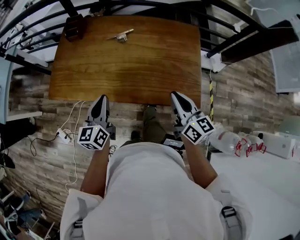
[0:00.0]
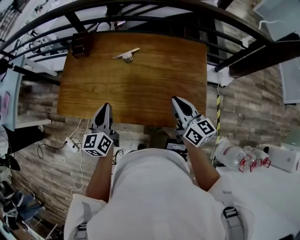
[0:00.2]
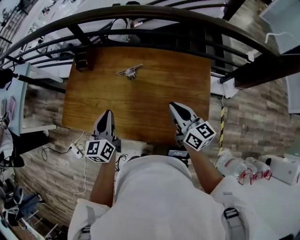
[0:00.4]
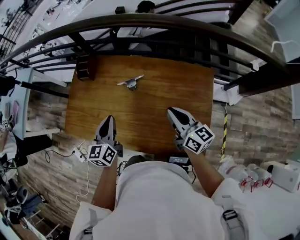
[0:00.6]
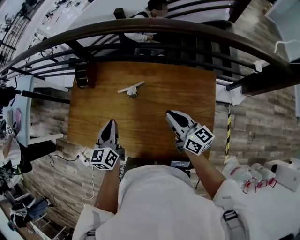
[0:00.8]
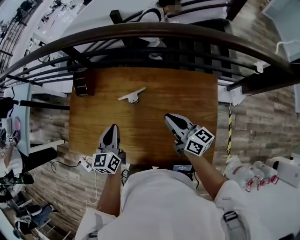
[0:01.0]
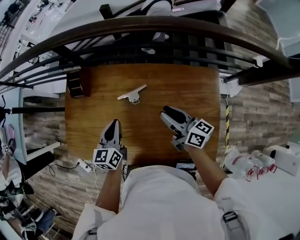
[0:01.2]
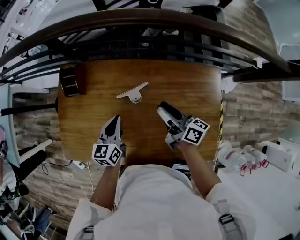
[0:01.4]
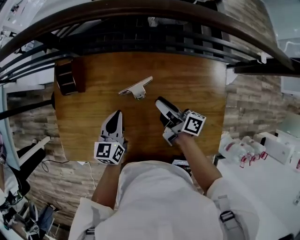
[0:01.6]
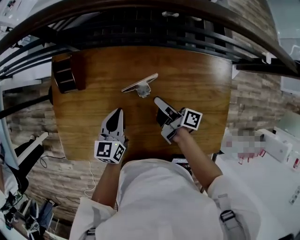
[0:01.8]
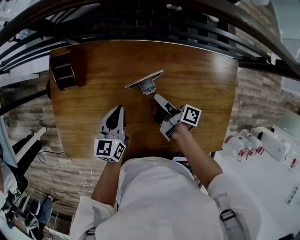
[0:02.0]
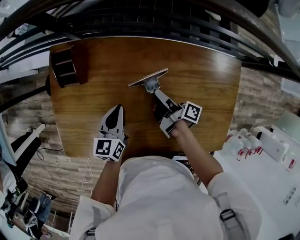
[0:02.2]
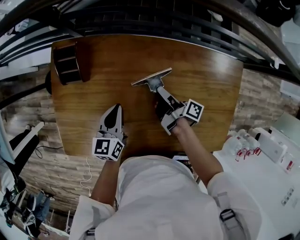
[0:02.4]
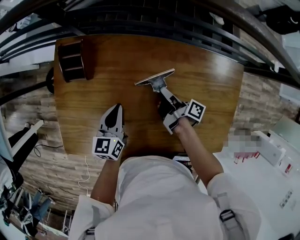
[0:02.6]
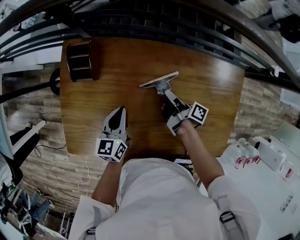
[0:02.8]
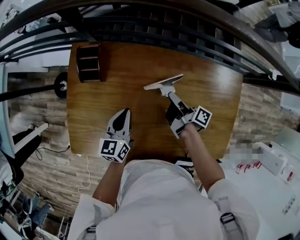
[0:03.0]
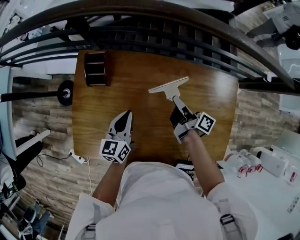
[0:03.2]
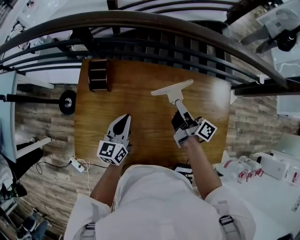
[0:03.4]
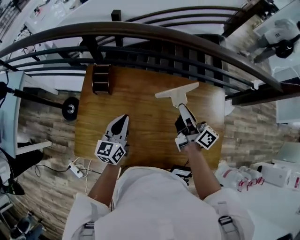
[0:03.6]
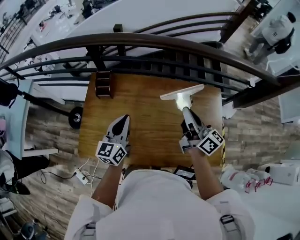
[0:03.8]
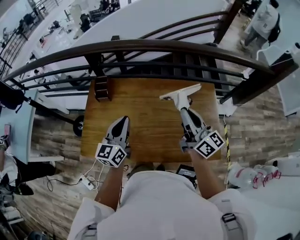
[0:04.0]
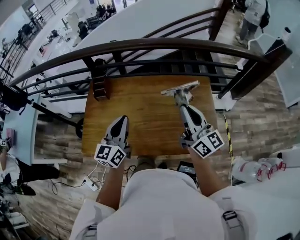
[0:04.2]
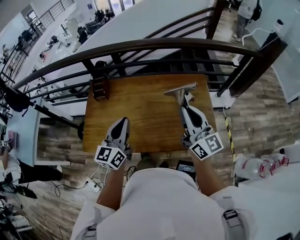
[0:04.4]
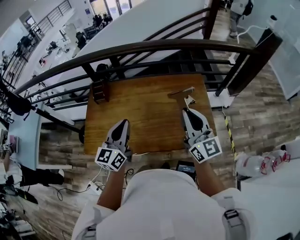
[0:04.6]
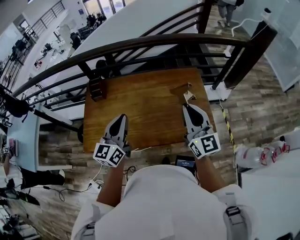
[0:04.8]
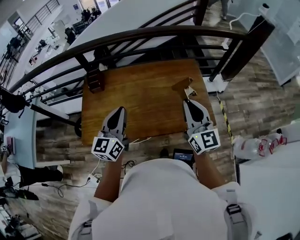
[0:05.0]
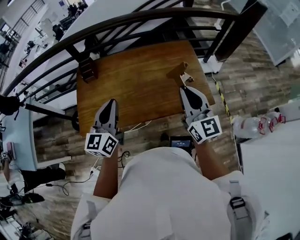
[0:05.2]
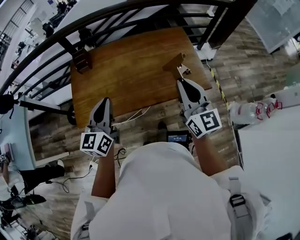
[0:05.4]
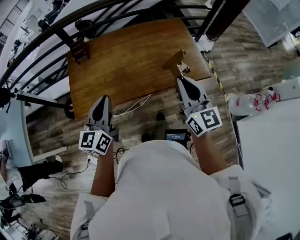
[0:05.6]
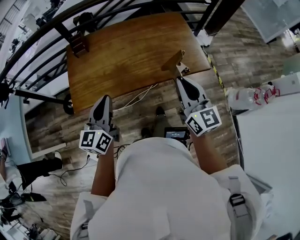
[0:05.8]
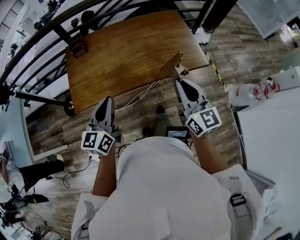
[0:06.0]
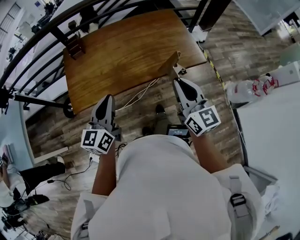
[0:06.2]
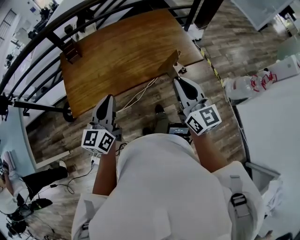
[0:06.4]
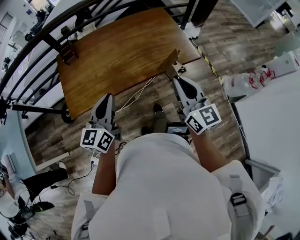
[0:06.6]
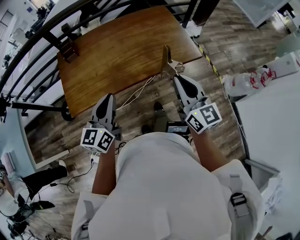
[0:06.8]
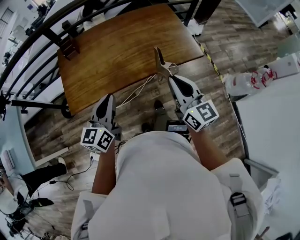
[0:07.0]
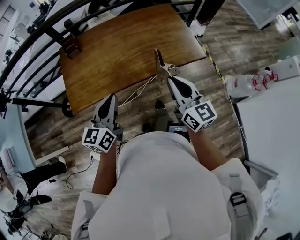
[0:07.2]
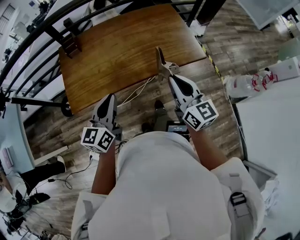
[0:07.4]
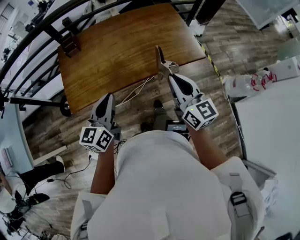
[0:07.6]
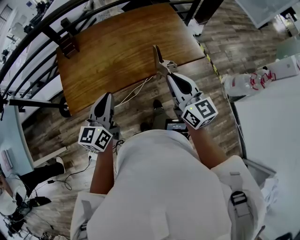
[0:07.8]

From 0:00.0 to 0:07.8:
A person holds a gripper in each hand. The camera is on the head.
From 0:00.0 to 0:01.6: The two grippers go roughly 35 cm forward. The right gripper rotates some 40 degrees, and opens.
From 0:01.6 to 0:03.2: The right gripper reaches roughly 15 cm downward, then returns, and closes; the left gripper moves to the left, approximately 10 cm.
From 0:03.2 to 0:04.6: The right gripper moves backward, upward and to the right, roughly 50 cm, and rolls counterclockwise, seen from behind, by roughly 70 degrees; the left gripper travels upward, backward and to the right by approximately 40 cm, and rotates about 30 degrees.
From 0:04.6 to 0:06.2: The two grippers go some 25 cm backward.
From 0:06.2 to 0:07.8: The grippers make only small movements.

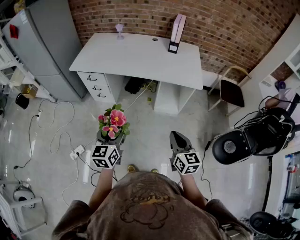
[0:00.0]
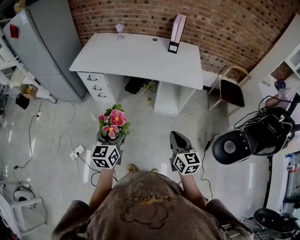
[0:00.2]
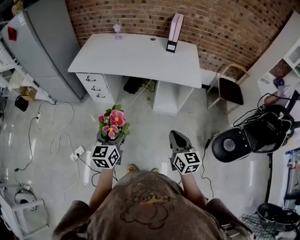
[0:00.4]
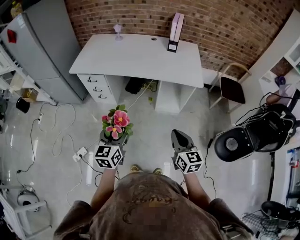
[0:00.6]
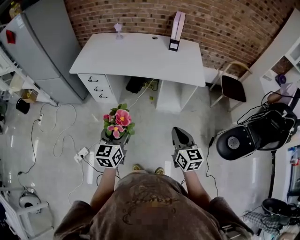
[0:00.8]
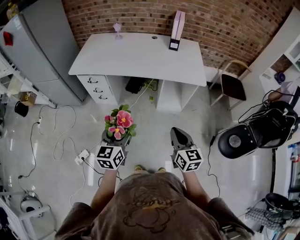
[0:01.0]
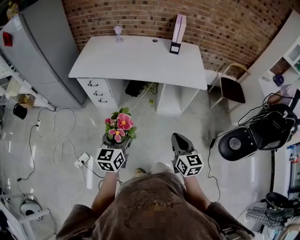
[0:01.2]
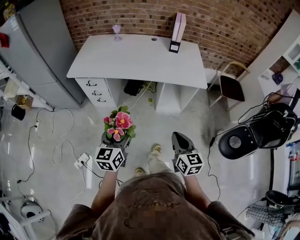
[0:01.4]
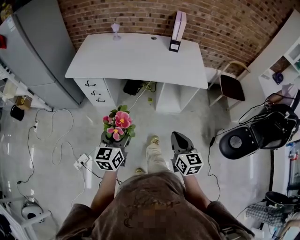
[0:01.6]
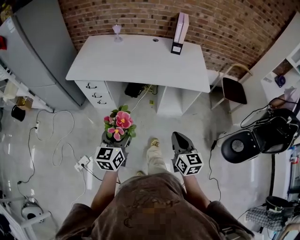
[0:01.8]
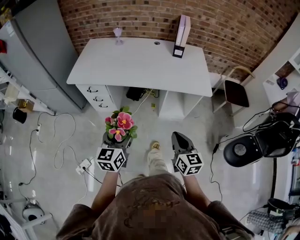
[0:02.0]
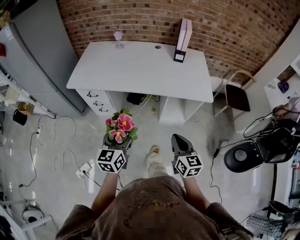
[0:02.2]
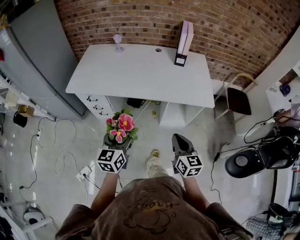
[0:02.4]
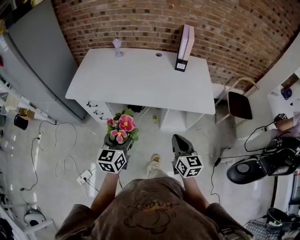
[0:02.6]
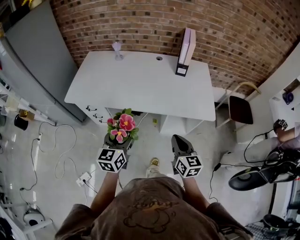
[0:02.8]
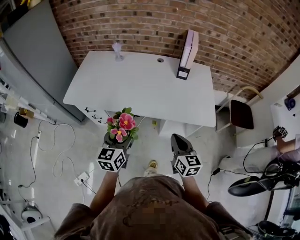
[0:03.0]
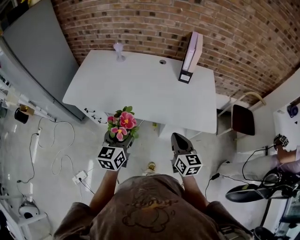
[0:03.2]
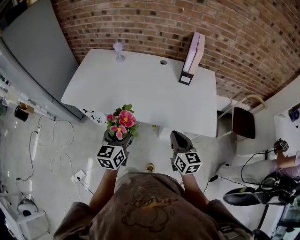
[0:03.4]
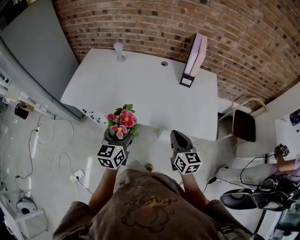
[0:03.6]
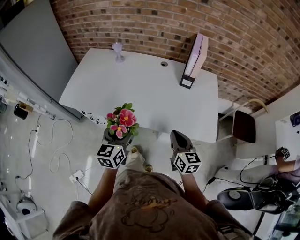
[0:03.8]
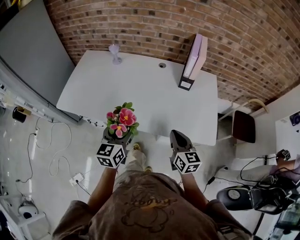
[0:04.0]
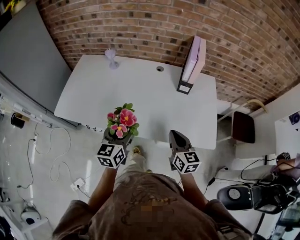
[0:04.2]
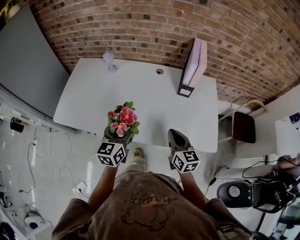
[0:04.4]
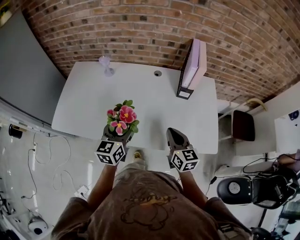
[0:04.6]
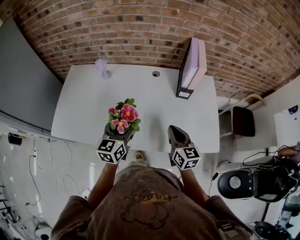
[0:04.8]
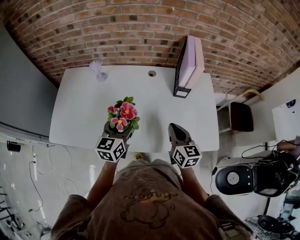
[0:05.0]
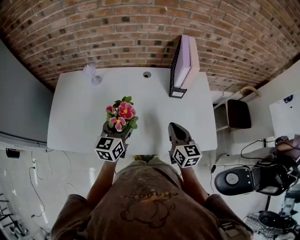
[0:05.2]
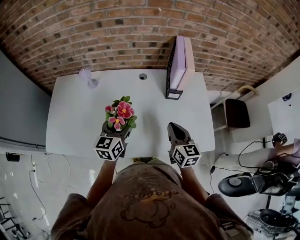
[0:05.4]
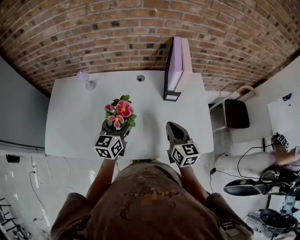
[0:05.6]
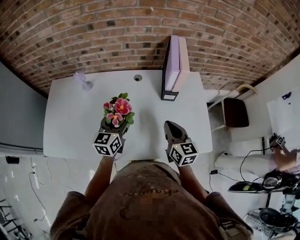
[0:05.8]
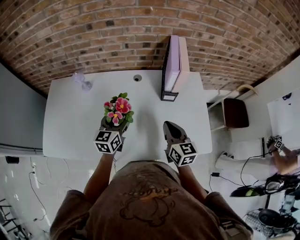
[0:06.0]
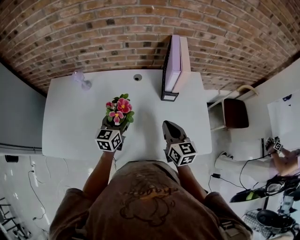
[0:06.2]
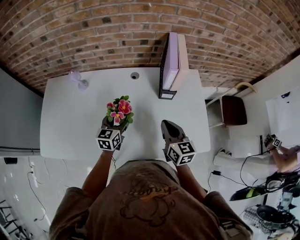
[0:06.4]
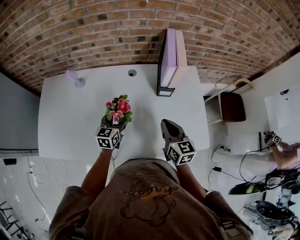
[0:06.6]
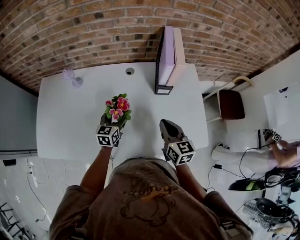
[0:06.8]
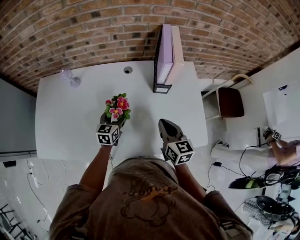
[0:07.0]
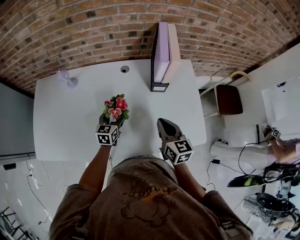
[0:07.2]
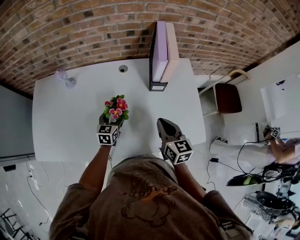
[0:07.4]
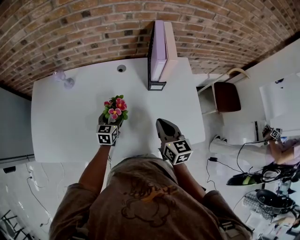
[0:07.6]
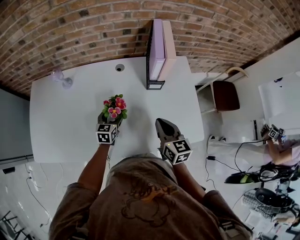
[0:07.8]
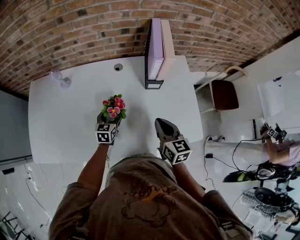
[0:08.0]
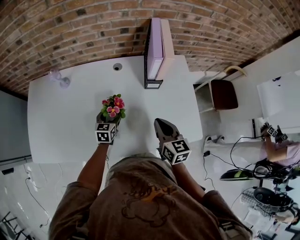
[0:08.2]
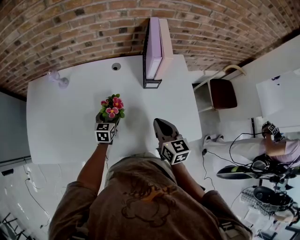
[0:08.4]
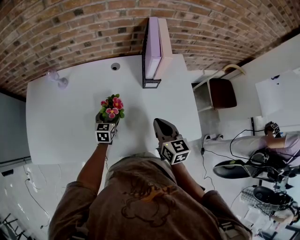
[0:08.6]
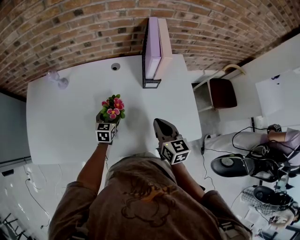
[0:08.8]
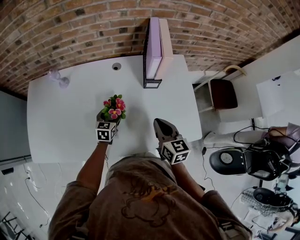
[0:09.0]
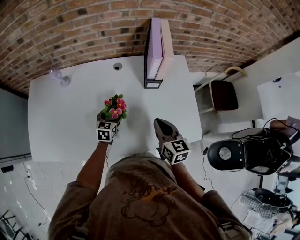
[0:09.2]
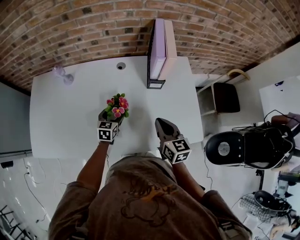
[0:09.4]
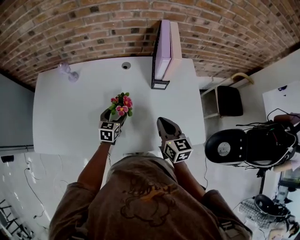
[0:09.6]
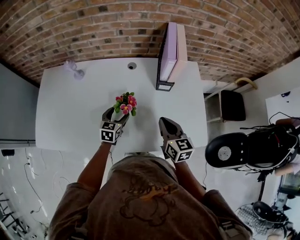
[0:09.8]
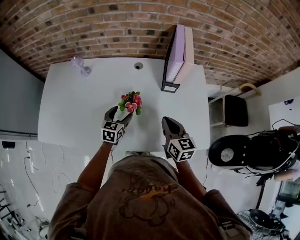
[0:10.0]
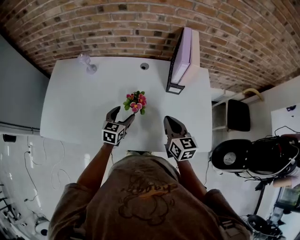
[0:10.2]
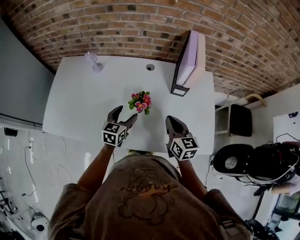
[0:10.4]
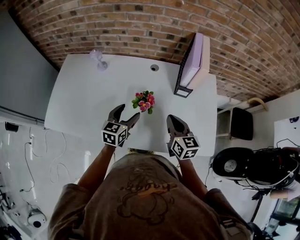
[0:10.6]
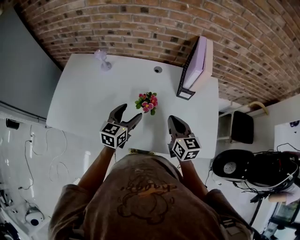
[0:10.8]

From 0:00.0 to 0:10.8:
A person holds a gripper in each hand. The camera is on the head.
From 0:00.0 to 0:01.6: The left gripper heads forward and to the left, covering approximately 10 cm, while the right gripper shifts roughly 10 cm to the left.
From 0:01.6 to 0:03.0: Both grippers move forward, about 25 cm.
From 0:03.0 to 0:04.6: The grippers both shift forward by about 25 cm.
From 0:04.6 to 0:06.2: The right gripper is displaced forward by about 10 cm, while the left gripper goes approximately 20 cm forward and downward.
From 0:06.2 to 0:07.8: The left gripper shifts some 15 cm downward.
From 0:07.8 to 0:09.2: The grippers stay close to where they were, moving slightly.
From 0:09.2 to 0:10.8: The left gripper moves upward and backward, about 20 cm; the right gripper heads to the left, covering some 5 cm.

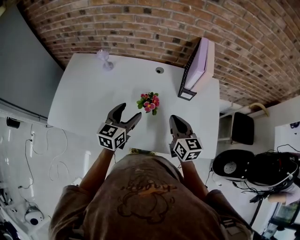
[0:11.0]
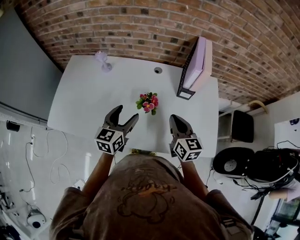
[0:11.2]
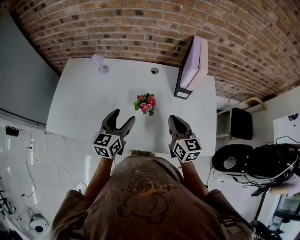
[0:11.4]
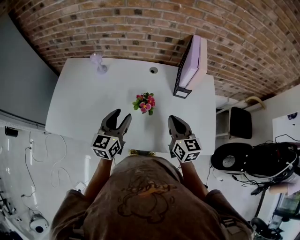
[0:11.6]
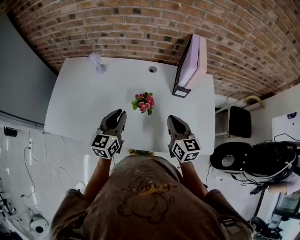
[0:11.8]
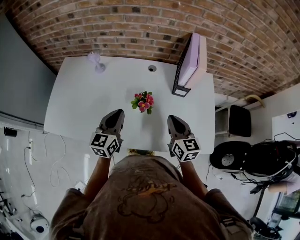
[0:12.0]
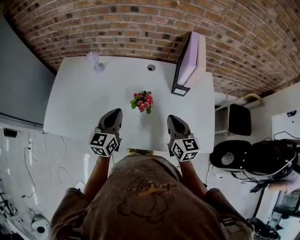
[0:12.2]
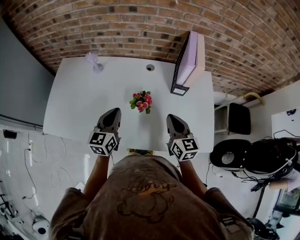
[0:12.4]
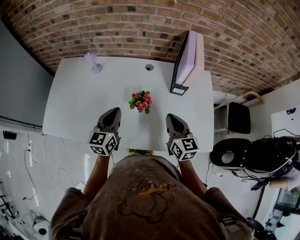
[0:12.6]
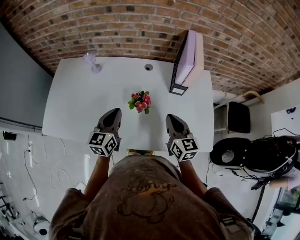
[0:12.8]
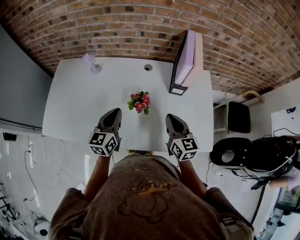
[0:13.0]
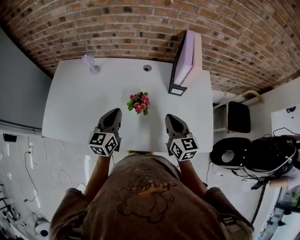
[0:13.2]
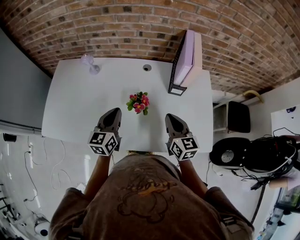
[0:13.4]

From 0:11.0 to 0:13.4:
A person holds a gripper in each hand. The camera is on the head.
From 0:11.0 to 0:12.2: The left gripper closes up.
From 0:12.2 to 0:13.4: The grippers make only small movements.

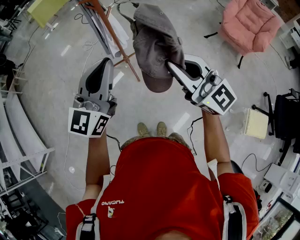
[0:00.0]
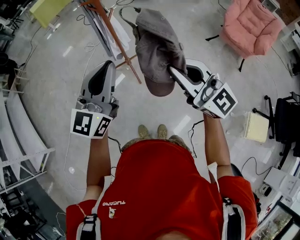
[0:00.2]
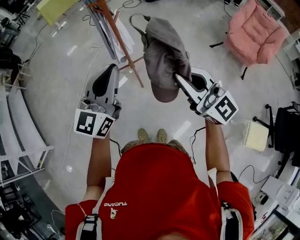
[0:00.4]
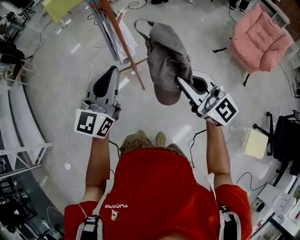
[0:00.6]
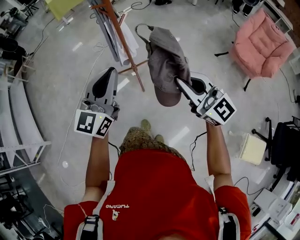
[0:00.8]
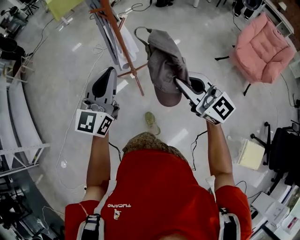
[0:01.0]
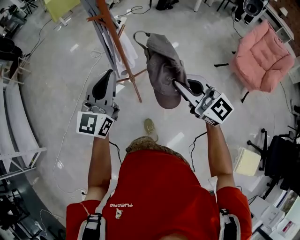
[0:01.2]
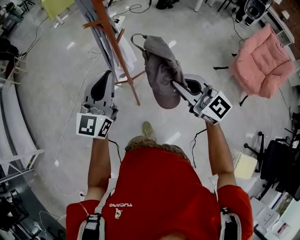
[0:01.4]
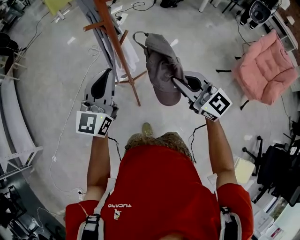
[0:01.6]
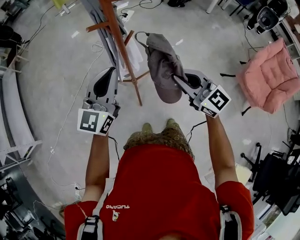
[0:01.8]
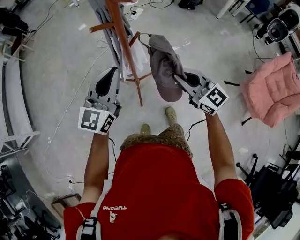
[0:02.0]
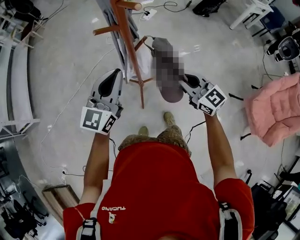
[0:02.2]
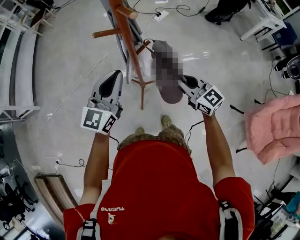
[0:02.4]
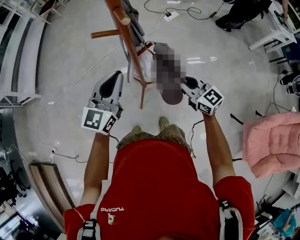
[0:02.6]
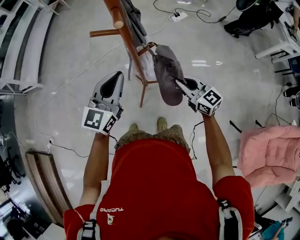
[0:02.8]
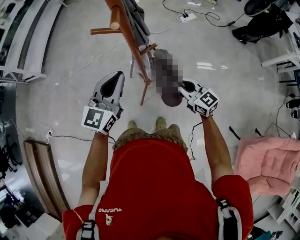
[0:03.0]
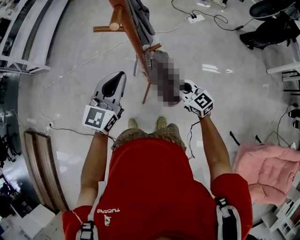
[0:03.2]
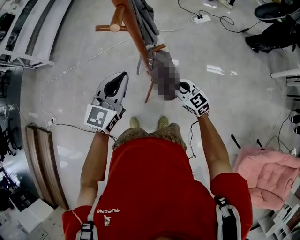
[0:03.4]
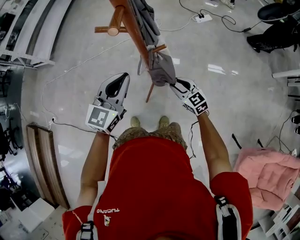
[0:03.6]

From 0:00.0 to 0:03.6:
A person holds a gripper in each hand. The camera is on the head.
From 0:00.0 to 0:01.8: The grippers both shift forward by approximately 30 cm. The right gripper swivels about 20 degrees.
From 0:01.8 to 0:03.6: The left gripper goes some 10 cm downward, and rotates about 40 degrees. The right gripper travels downward by some 25 cm, turns by about 40 degrees, and opens.
